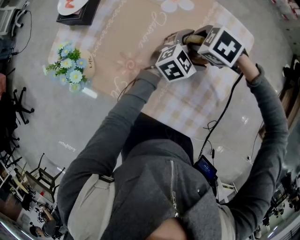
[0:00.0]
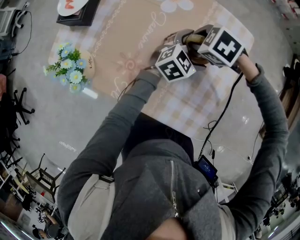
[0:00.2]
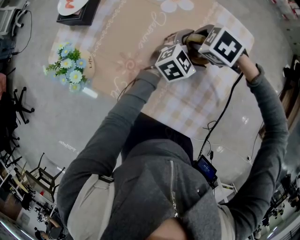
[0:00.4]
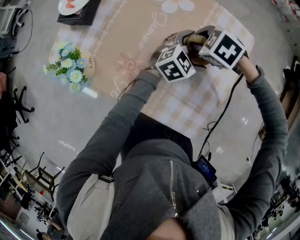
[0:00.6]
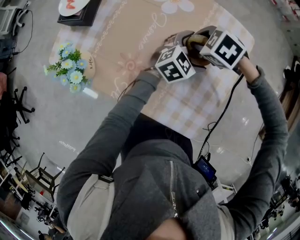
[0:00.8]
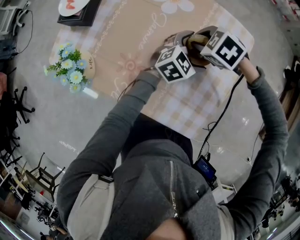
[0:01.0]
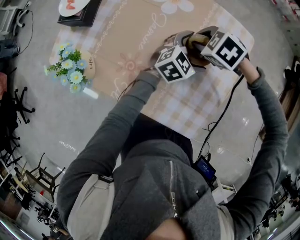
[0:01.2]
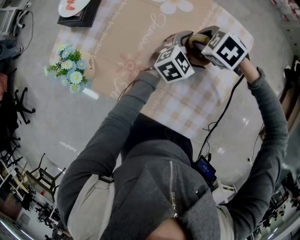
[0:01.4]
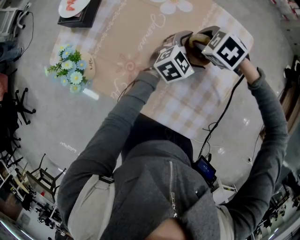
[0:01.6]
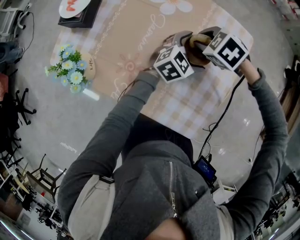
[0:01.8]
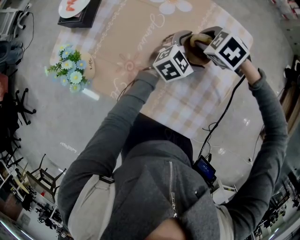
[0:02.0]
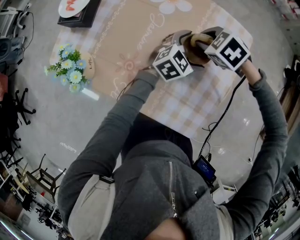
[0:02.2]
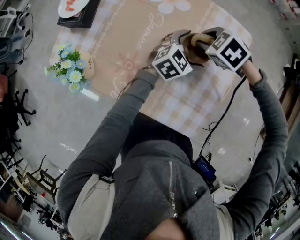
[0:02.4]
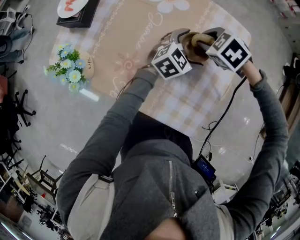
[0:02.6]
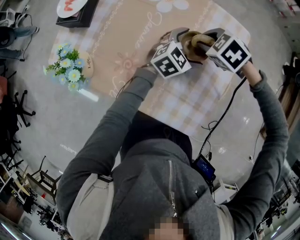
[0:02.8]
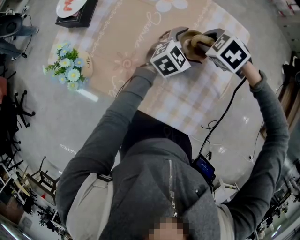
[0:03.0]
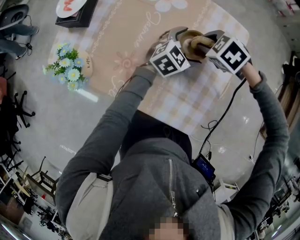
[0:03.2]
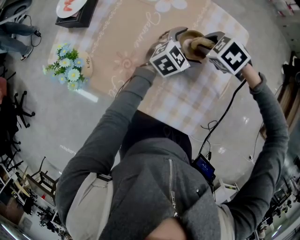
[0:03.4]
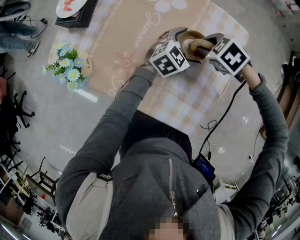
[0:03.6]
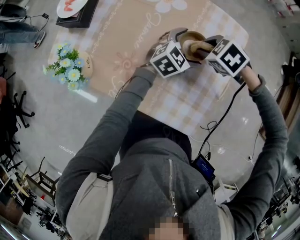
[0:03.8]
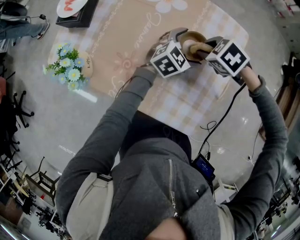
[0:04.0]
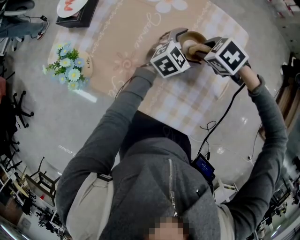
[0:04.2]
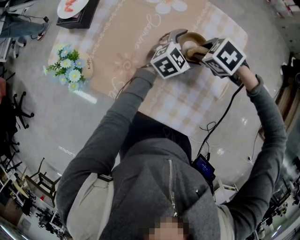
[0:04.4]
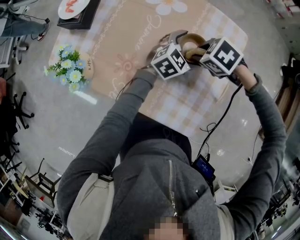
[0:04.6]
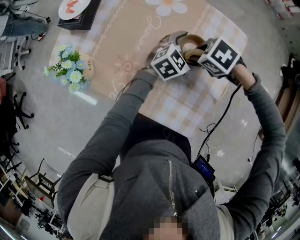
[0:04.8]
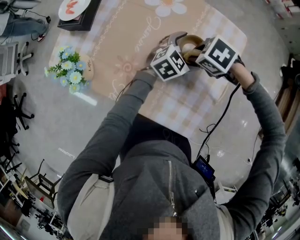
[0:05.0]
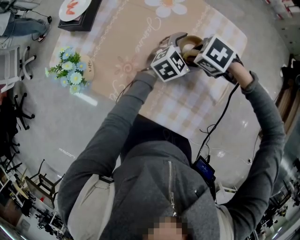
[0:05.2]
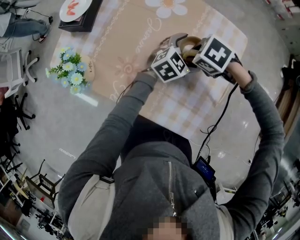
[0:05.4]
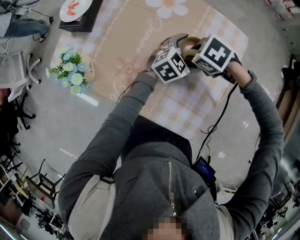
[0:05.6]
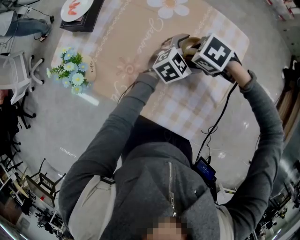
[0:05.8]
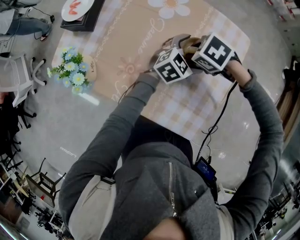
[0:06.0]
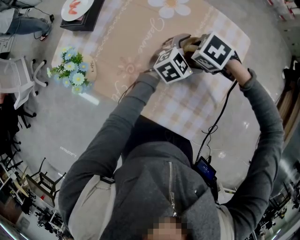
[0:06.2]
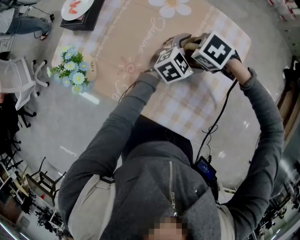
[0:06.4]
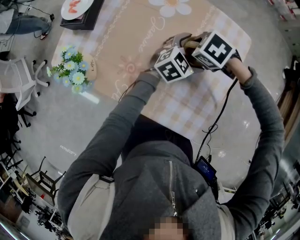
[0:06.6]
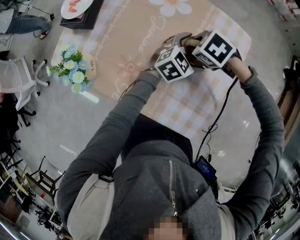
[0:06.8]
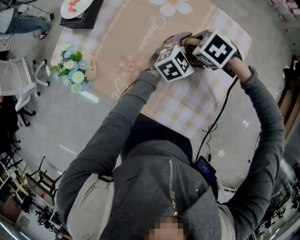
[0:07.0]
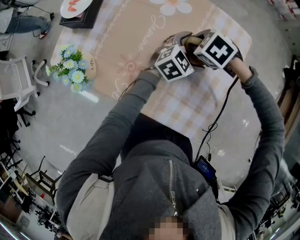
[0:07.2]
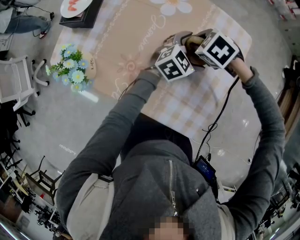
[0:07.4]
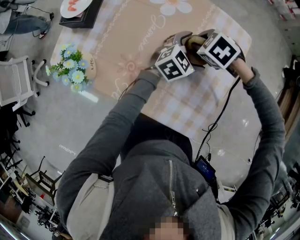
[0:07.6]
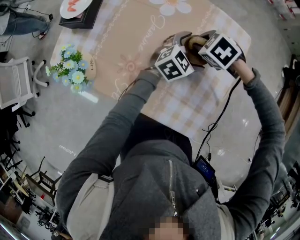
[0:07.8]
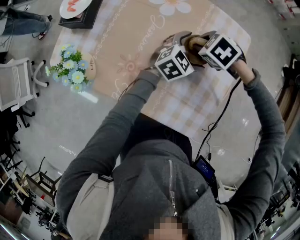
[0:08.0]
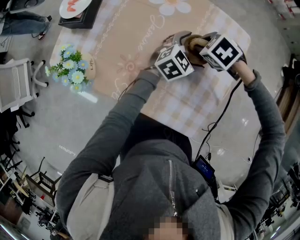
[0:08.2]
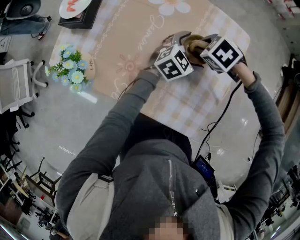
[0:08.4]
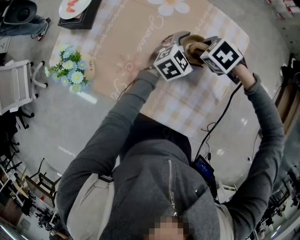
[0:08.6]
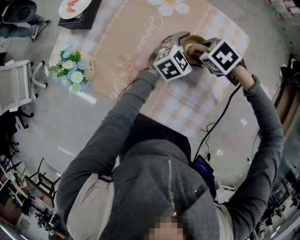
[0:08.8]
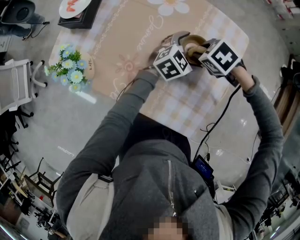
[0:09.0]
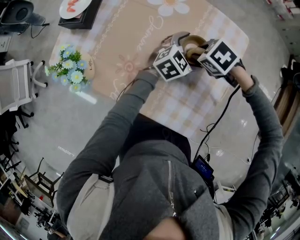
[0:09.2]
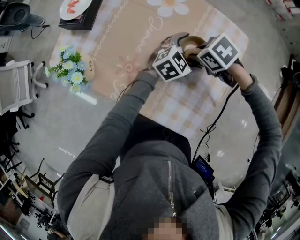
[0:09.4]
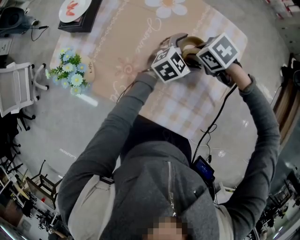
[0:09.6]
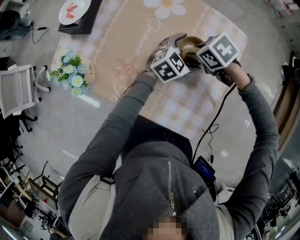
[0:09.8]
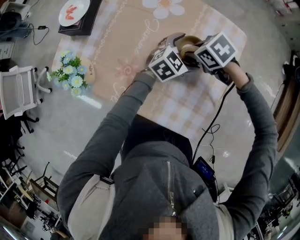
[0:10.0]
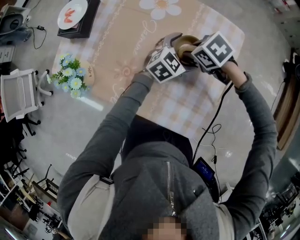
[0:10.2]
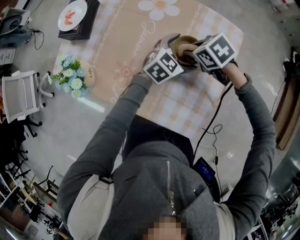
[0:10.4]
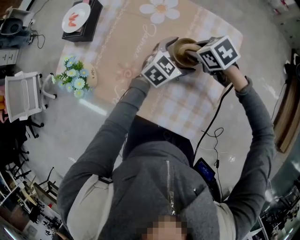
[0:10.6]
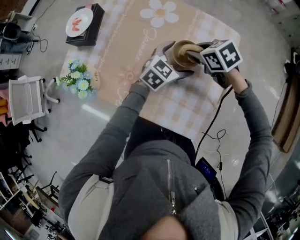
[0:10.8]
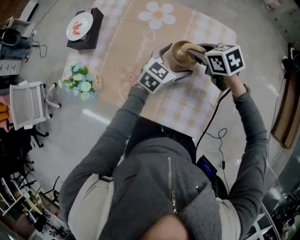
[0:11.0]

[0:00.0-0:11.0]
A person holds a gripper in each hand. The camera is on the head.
0:00.0 to 0:03.2: The grippers move only a little.
0:03.2 to 0:09.4: There are only small adjustments of the grippers.
0:09.4 to 0:11.0: Both grippers travel together upward, about 5 cm. The right gripper turns by about 40 degrees.

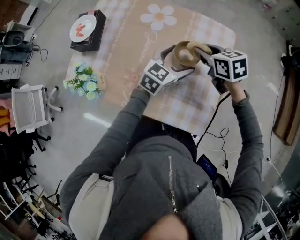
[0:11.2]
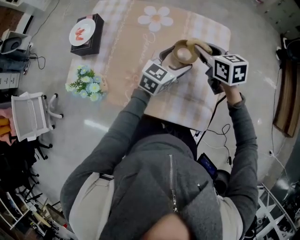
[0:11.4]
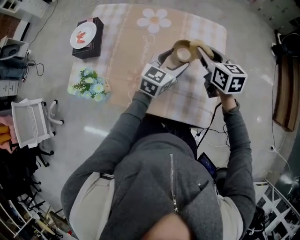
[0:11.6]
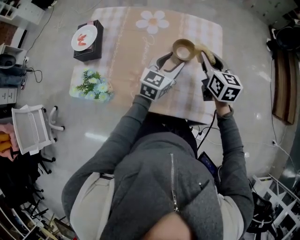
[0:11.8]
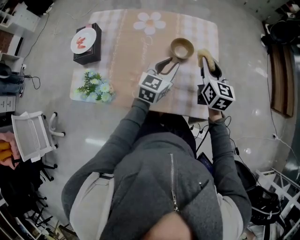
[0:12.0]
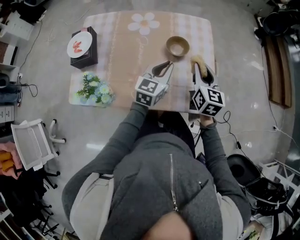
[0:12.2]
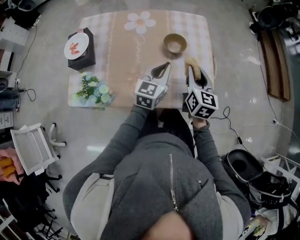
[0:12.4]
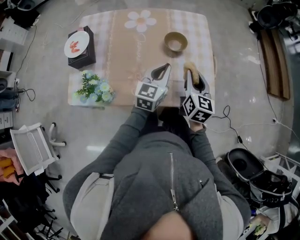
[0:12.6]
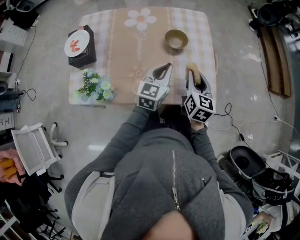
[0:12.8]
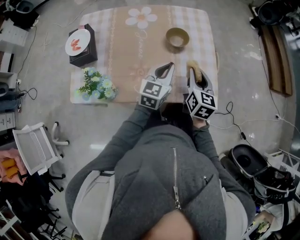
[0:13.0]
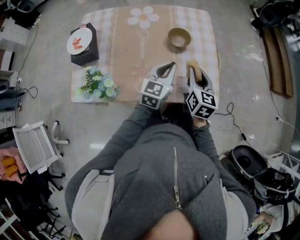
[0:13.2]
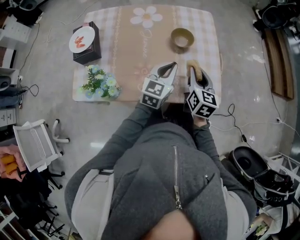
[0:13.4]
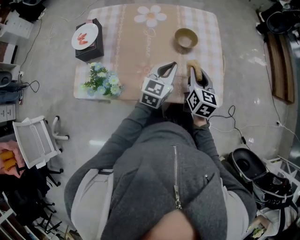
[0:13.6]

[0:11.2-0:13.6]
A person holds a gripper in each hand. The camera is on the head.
0:11.2 to 0:12.4: The left gripper ends up some 10 cm from where it was, and closes; the right gripper changes place by some 15 cm, and rotates some 60 degrees.
0:12.4 to 0:13.6: There are only small adjustments of the grippers.

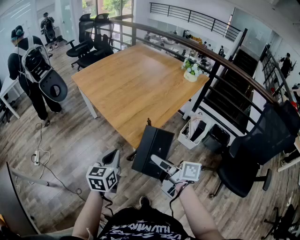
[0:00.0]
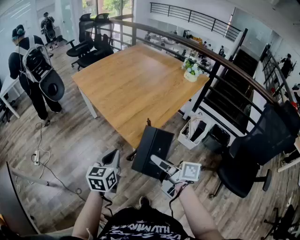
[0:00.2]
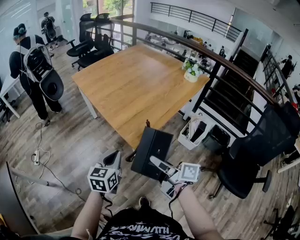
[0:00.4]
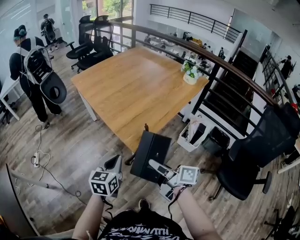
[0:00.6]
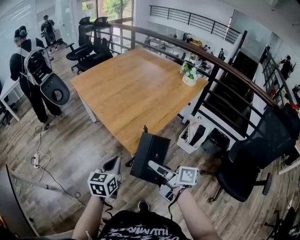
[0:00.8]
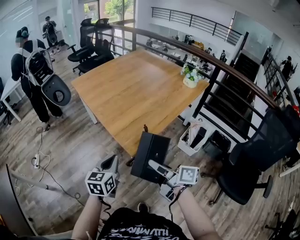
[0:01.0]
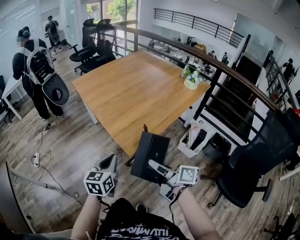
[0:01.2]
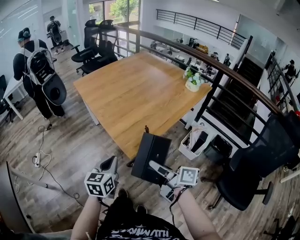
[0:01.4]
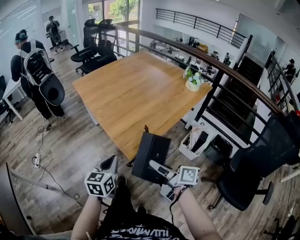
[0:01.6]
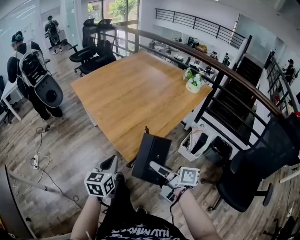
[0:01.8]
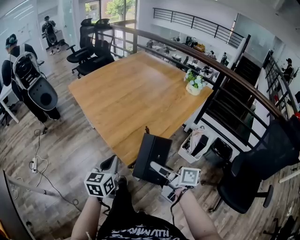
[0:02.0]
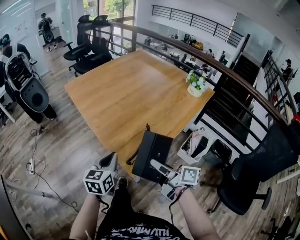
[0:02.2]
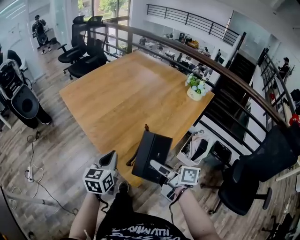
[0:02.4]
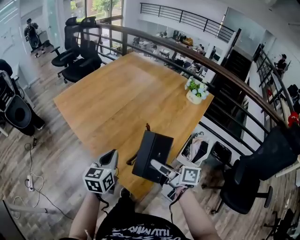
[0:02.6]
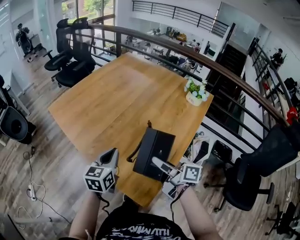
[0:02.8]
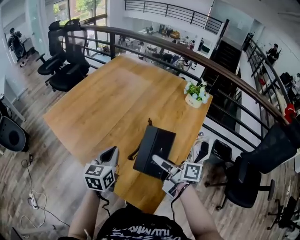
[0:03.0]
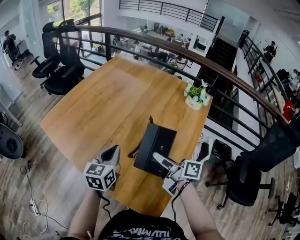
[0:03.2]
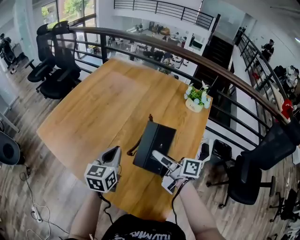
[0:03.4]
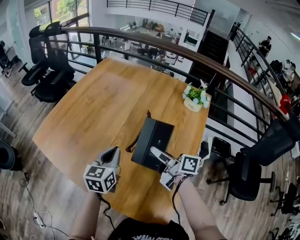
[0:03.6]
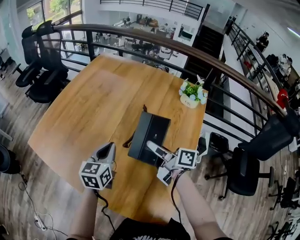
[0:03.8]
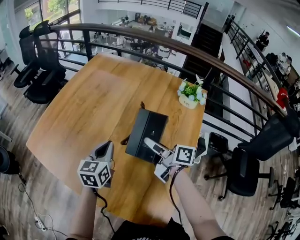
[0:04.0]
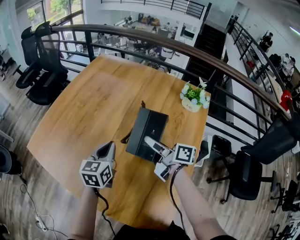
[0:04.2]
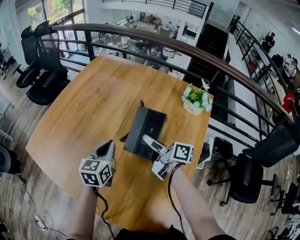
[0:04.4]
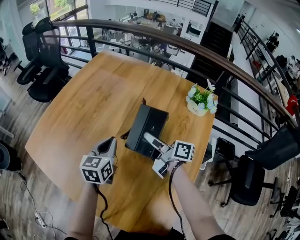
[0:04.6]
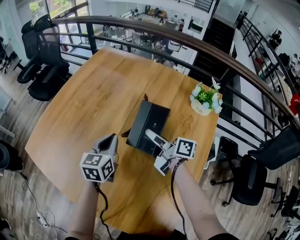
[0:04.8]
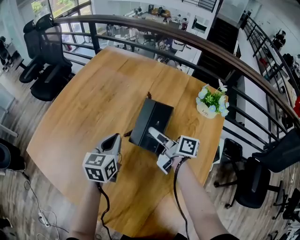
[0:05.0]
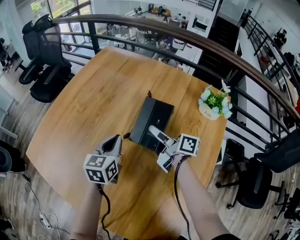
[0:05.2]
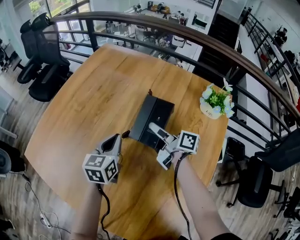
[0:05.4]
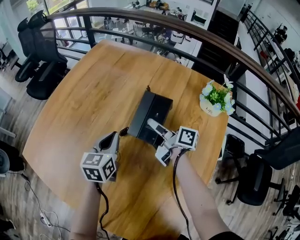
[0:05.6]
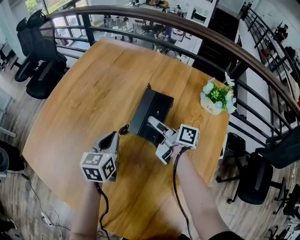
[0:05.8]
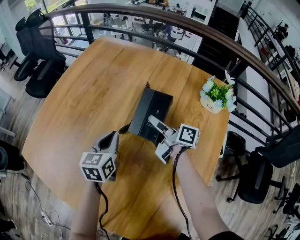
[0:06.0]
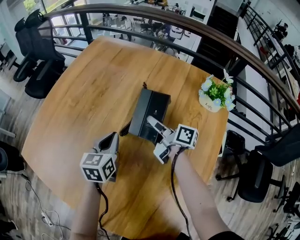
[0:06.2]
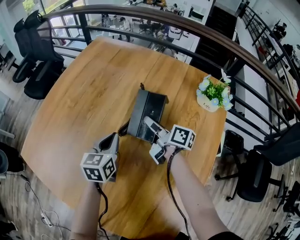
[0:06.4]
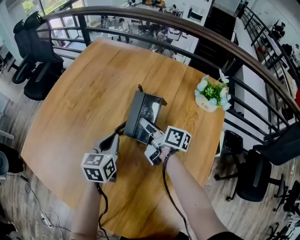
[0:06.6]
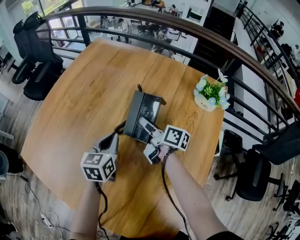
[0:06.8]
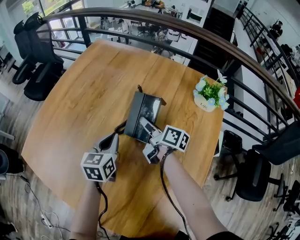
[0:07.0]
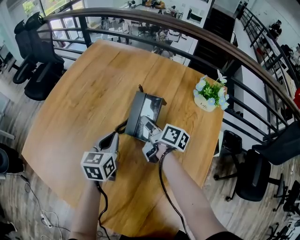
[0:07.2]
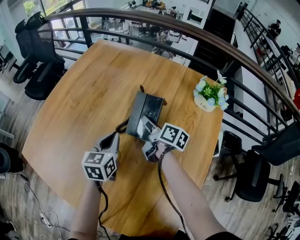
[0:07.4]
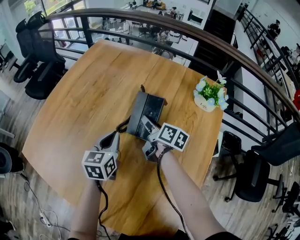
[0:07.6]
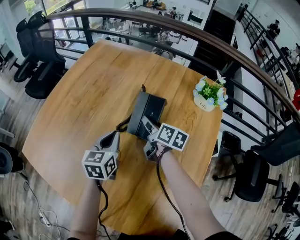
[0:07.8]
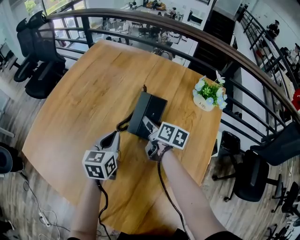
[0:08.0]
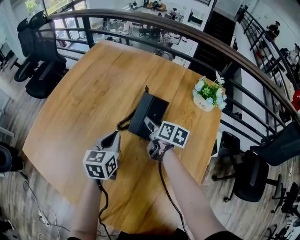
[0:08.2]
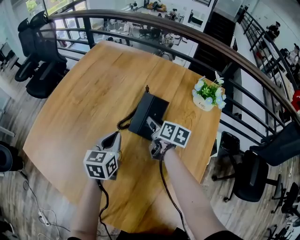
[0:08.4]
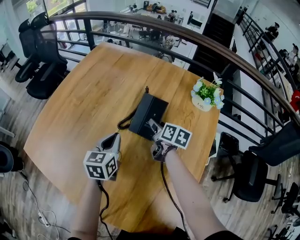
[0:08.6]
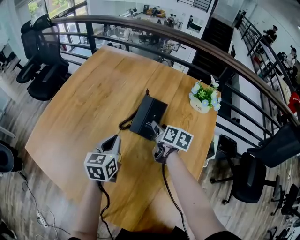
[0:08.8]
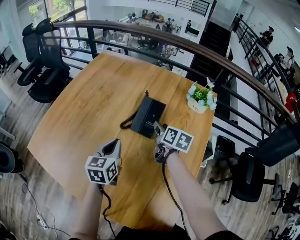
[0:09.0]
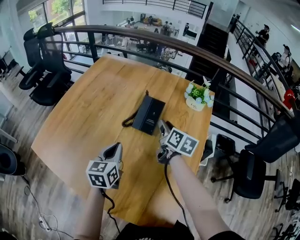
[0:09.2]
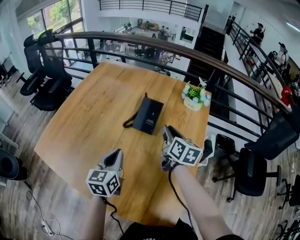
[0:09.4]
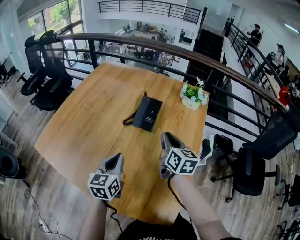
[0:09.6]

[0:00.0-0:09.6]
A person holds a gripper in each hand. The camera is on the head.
0:00.0 to 0:01.6: The right gripper changes place by approximately 5 cm.
0:01.6 to 0:03.2: The pair of grippers is taken forward, roughly 40 cm. The left gripper rotates approximately 20 degrees.
0:03.2 to 0:04.8: The grippers both shift forward by roughly 25 cm.
0:04.8 to 0:06.4: The left gripper is displaced downward by roughly 5 cm; the right gripper heads forward and downward, covering about 10 cm.
0:06.4 to 0:08.0: The right gripper rotates some 30 degrees, and opens its fingers.
0:08.0 to 0:09.6: The left gripper is displaced backward by roughly 20 cm. Meanwhile the right gripper travels backward and upward by approximately 25 cm, changes its angle by about 30 degrees, and closes its fingers.

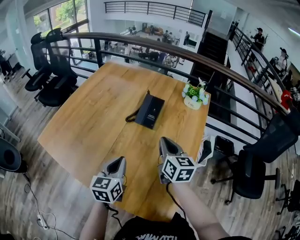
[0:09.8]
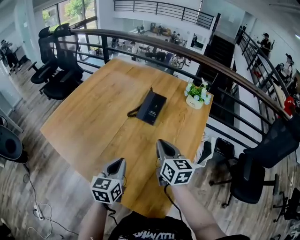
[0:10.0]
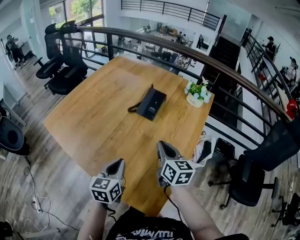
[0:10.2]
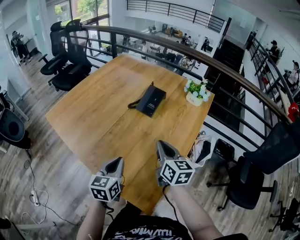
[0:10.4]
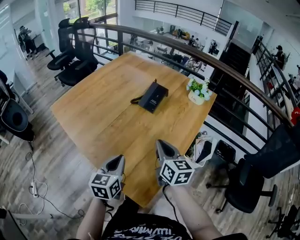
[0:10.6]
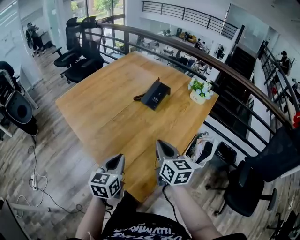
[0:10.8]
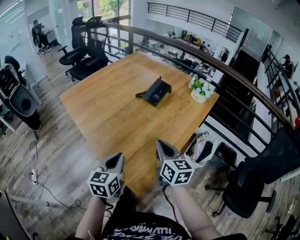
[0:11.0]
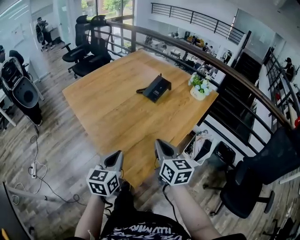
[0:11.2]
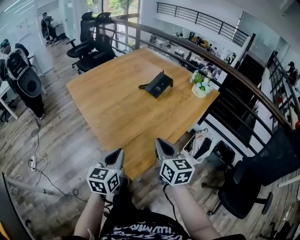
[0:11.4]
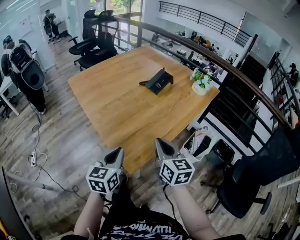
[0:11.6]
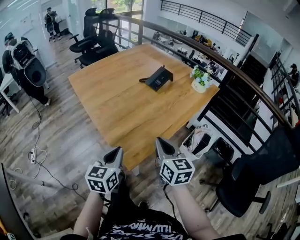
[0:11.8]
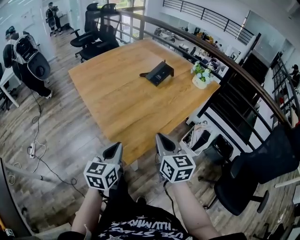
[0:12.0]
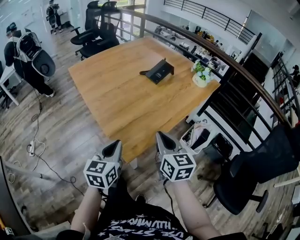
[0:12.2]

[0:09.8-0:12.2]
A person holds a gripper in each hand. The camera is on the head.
0:09.8 to 0:11.0: Both grippers travel together backward, some 20 cm. The right gripper rotates some 20 degrees.
0:11.0 to 0:12.2: The grippers both shift backward by approximately 15 cm.
